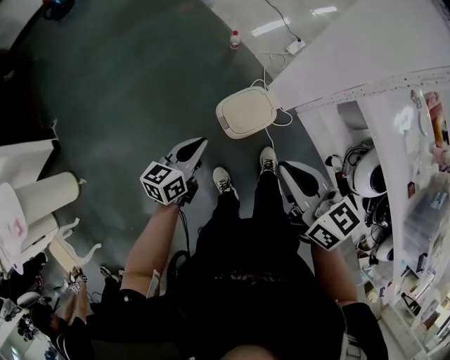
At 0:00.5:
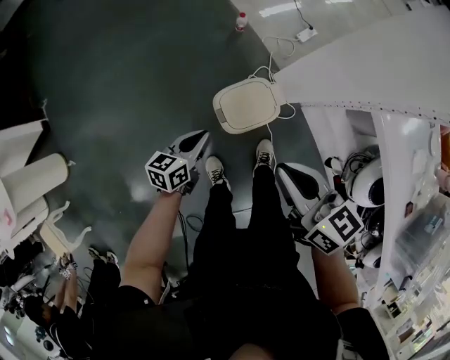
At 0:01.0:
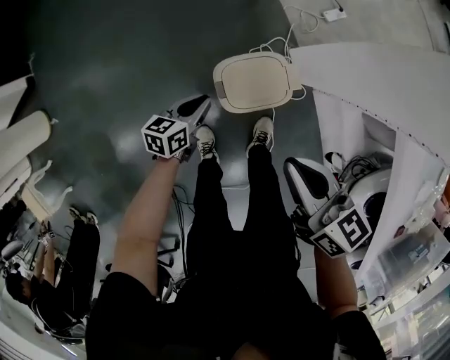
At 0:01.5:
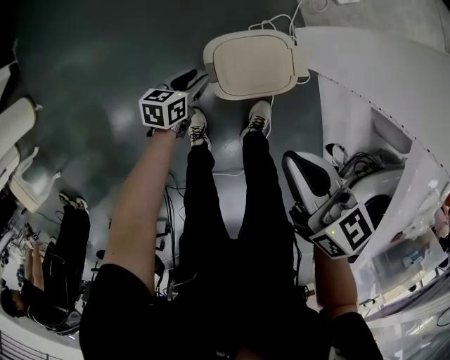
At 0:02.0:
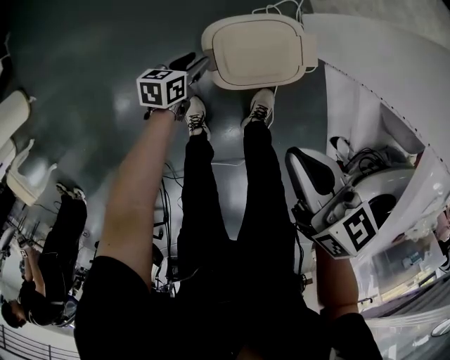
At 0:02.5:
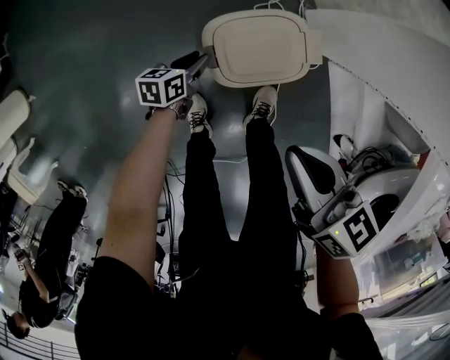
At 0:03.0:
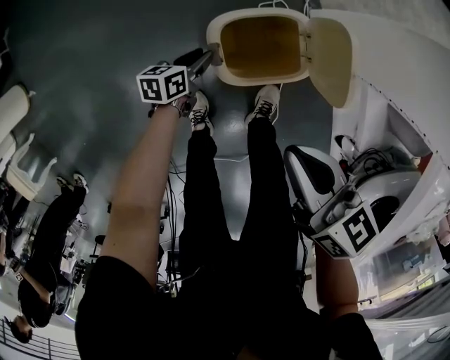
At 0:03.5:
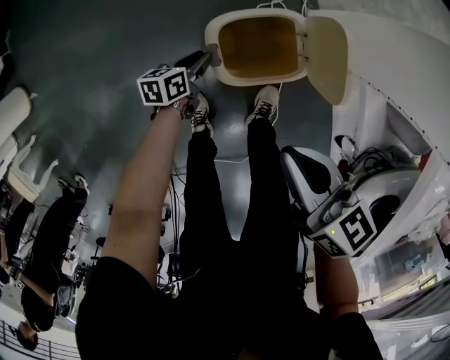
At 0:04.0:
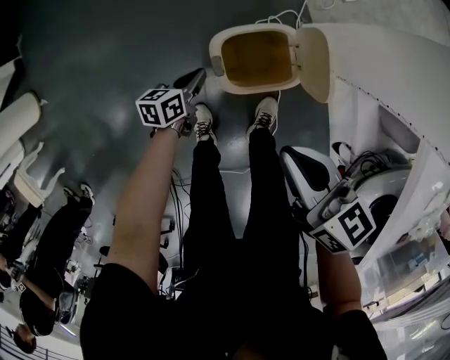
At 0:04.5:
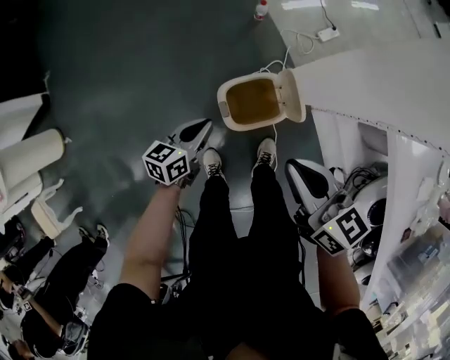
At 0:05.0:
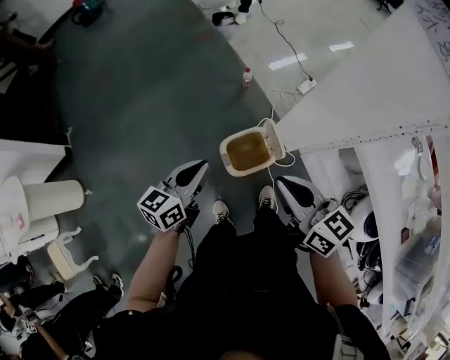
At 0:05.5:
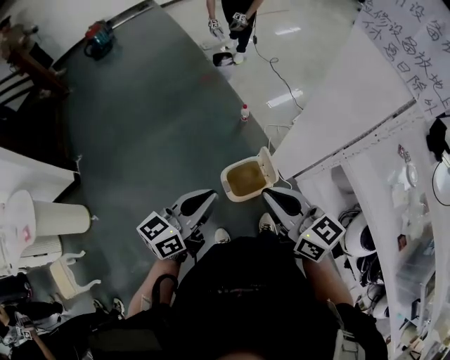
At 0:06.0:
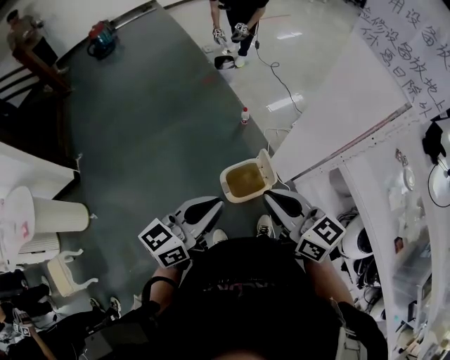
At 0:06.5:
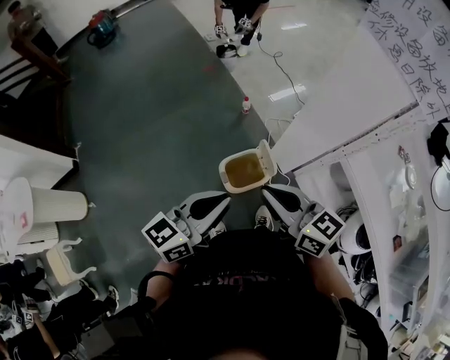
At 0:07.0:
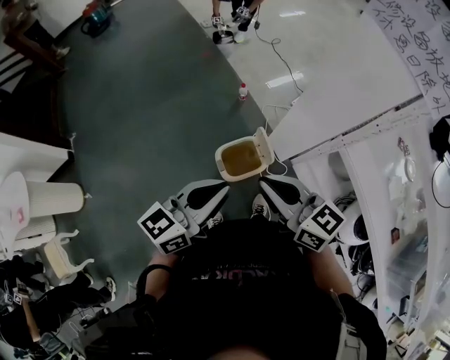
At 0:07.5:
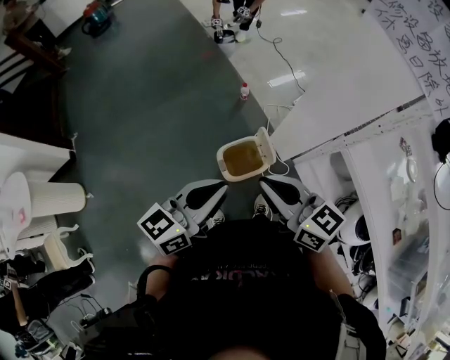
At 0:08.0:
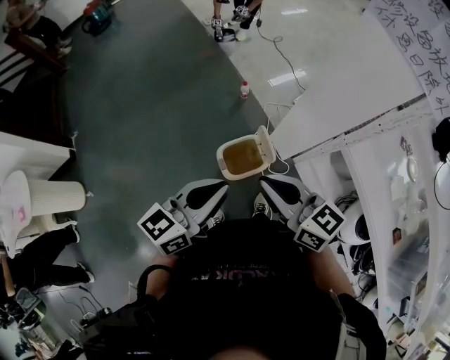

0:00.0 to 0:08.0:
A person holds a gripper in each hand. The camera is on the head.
0:00.0 to 0:02.0: The left gripper shifts roughly 40 cm downward, changes its angle by approximately 30 degrees, and opens, while the right gripper shifts about 30 cm downward, and turns by some 30 degrees.
0:02.0 to 0:04.0: The left gripper heads upward, covering some 5 cm, and closes its fingers.
0:04.0 to 0:06.0: The left gripper is displaced upward by roughly 60 cm, and points its fingers roughly 30 degrees further upward. Meanwhile the right gripper goes approximately 35 cm upward, and changes its angle by some 30 degrees.
0:06.0 to 0:08.0: There are only small adjustments of the grippers.

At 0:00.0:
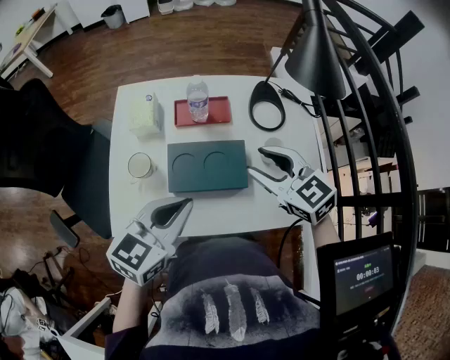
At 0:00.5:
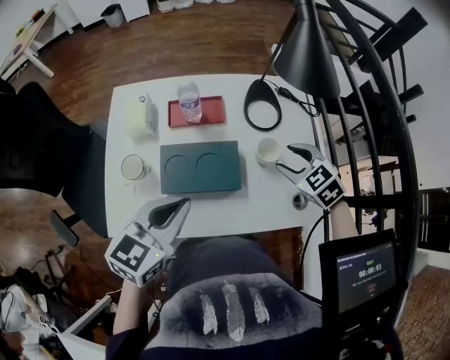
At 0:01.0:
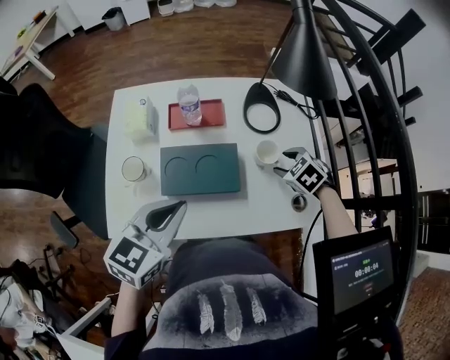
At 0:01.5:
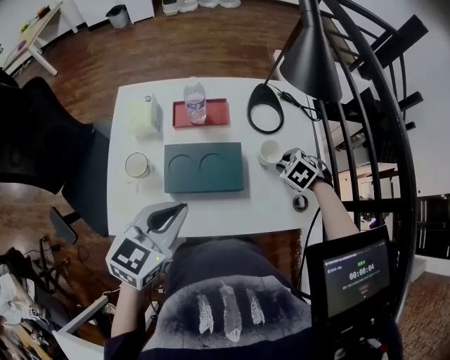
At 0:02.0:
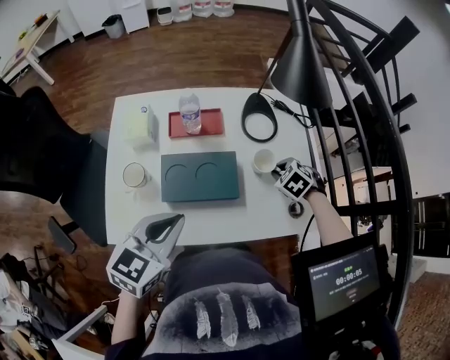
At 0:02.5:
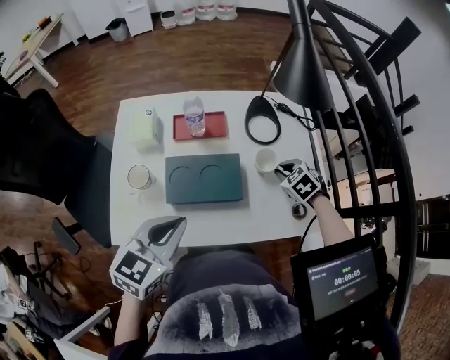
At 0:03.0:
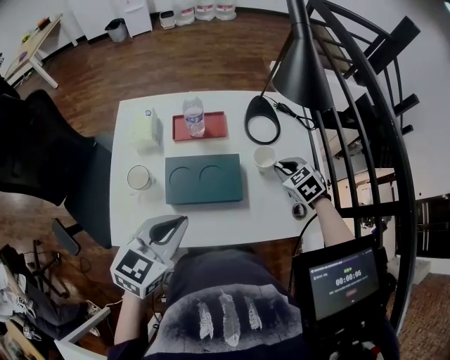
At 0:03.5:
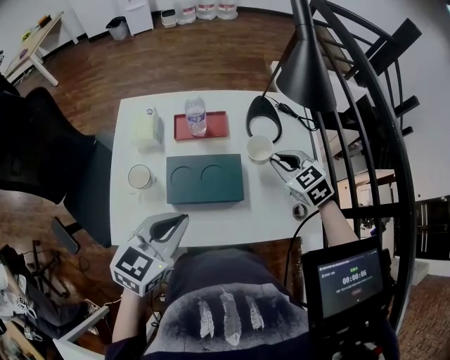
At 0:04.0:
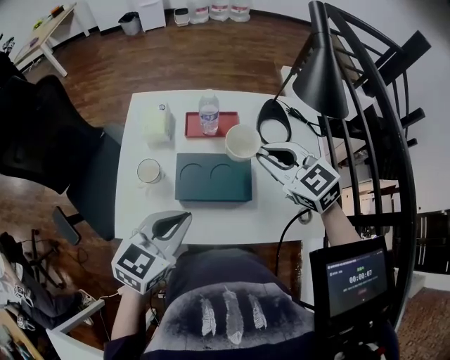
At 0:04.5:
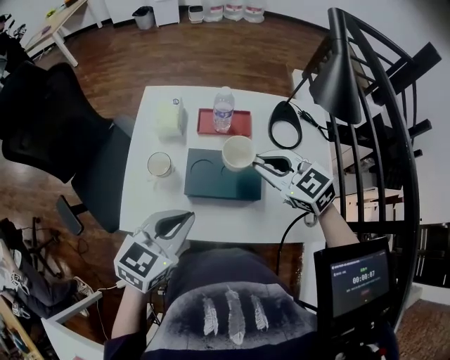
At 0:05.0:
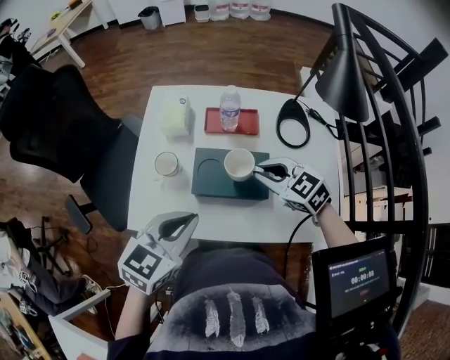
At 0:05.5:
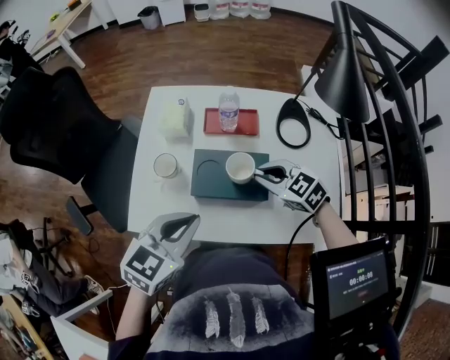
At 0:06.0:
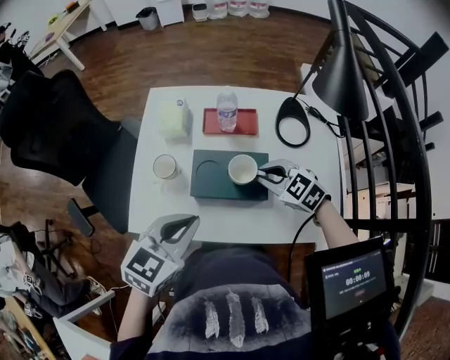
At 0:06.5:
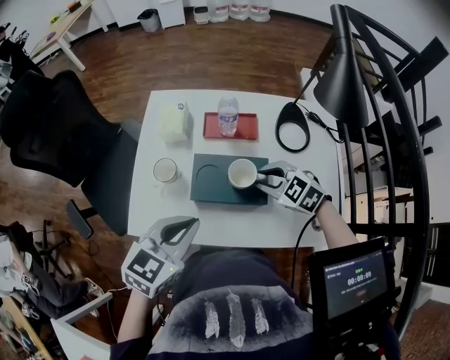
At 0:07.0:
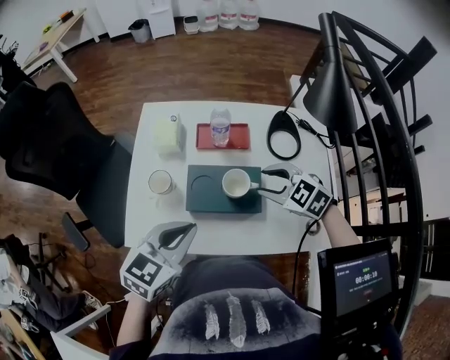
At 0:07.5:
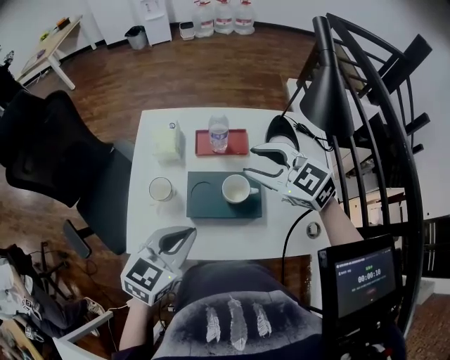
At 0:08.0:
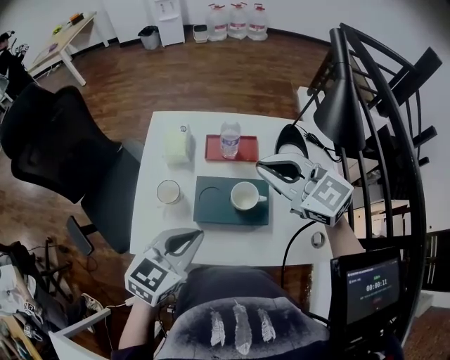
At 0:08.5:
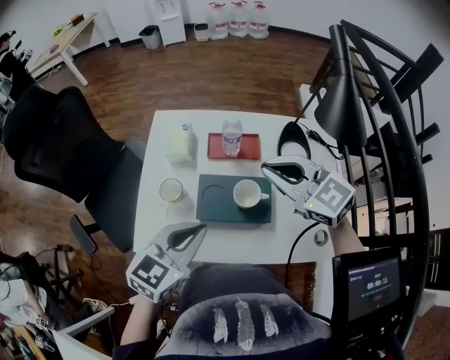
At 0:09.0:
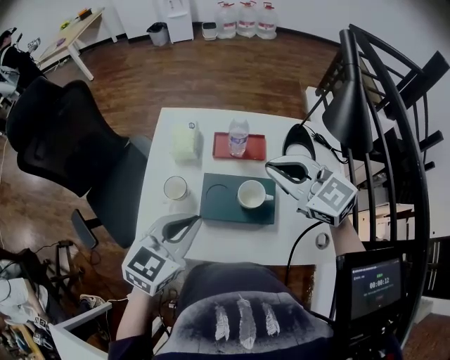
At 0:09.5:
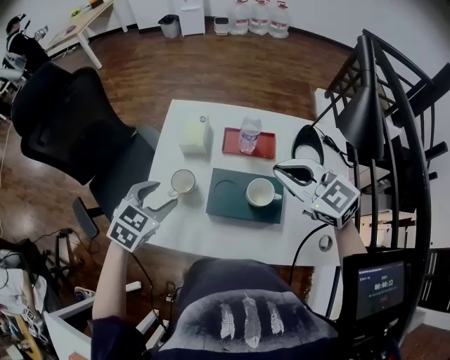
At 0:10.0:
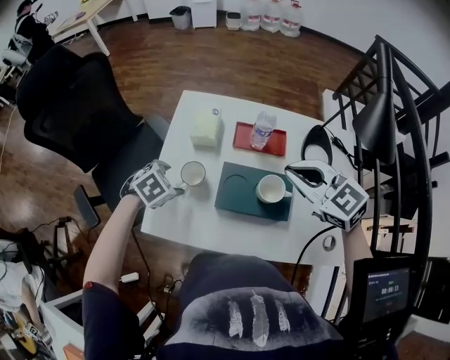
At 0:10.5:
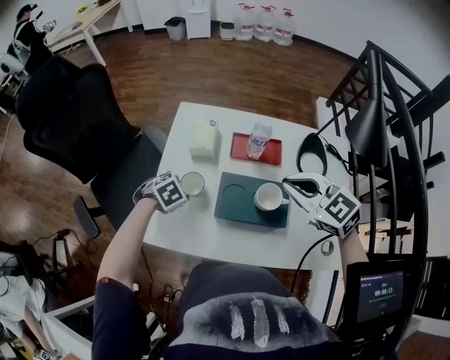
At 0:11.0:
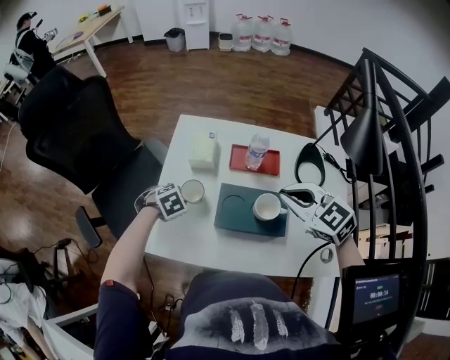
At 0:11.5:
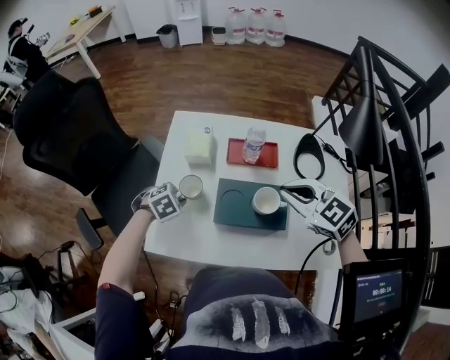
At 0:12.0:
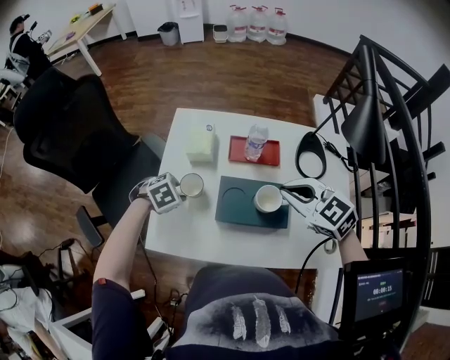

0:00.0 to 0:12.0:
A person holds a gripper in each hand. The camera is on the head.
0:00.0 to 0:02.0: The right gripper shifts roughly 20 cm downward, points its fingers roughly 40 degrees further downward, and closes up.
0:02.0 to 0:04.0: The right gripper is displaced upward and to the left by about 25 cm, and points its fingers approximately 40 degrees further upward.
0:04.0 to 0:06.0: The right gripper shifts some 15 cm downward.
0:06.0 to 0:08.0: The right gripper travels upward by roughly 20 cm, rotates roughly 30 degrees, and opens and closes again.
0:08.0 to 0:10.0: The left gripper shifts some 25 cm downward, to the left and forward, points its fingers about 40 degrees further downward, and opens.
0:10.0 to 0:12.0: The left gripper closes its fingers.

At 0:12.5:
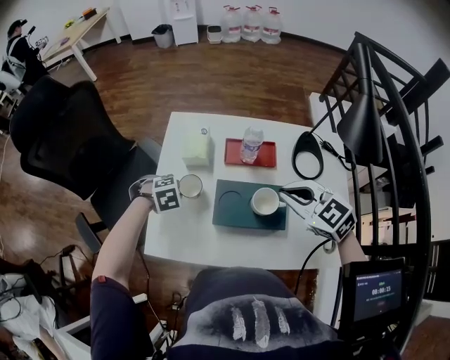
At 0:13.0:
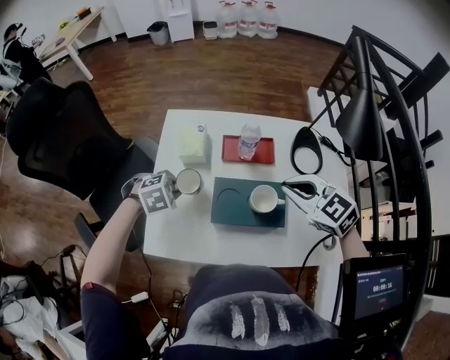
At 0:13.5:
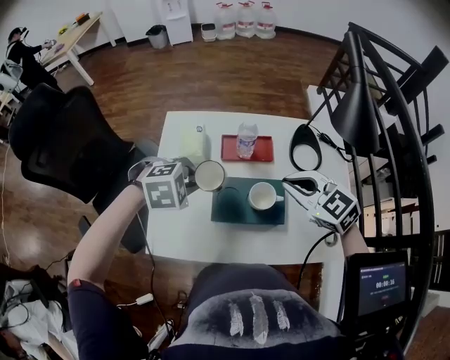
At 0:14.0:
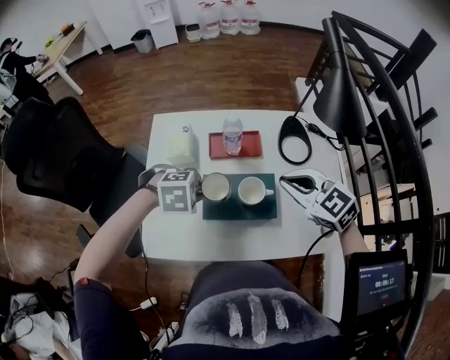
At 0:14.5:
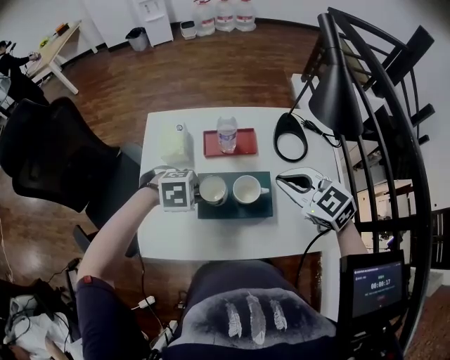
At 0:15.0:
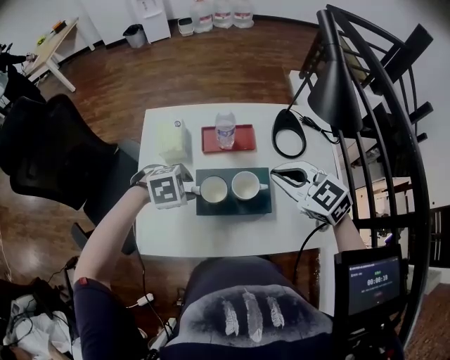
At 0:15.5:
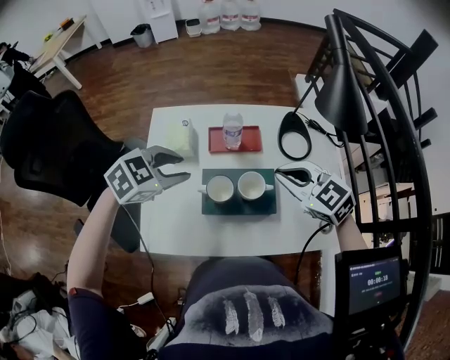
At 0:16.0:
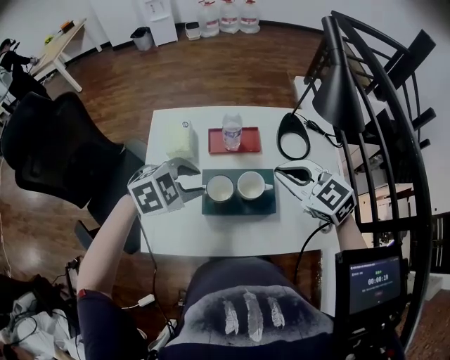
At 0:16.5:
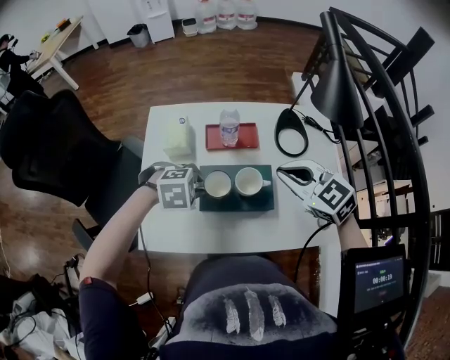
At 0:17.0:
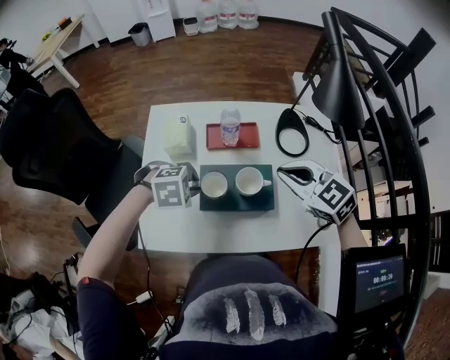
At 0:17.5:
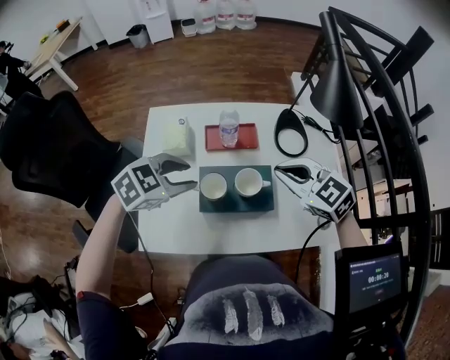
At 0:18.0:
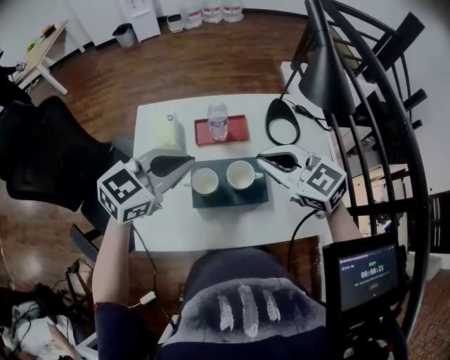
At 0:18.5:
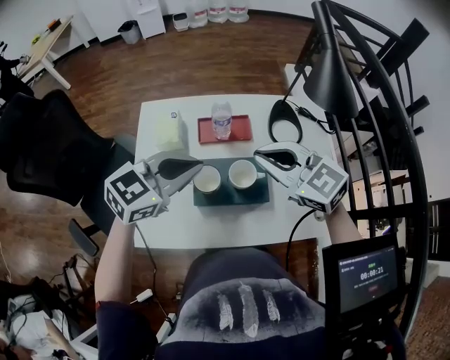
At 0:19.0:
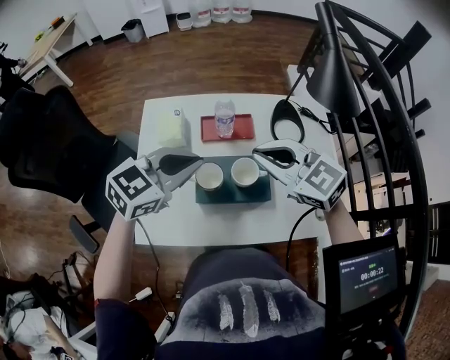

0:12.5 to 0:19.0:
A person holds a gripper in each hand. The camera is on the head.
0:12.5 to 0:14.5: The left gripper moves about 15 cm, and swivels some 20 degrees.
0:14.5 to 0:17.0: The left gripper moves roughly 10 cm upward and comes back.
0:17.0 to 0:19.0: The right gripper moves upward, approximately 5 cm, while the left gripper is displaced upward by approximately 15 cm, and tilts its fingers approximately 50 degrees upward.
